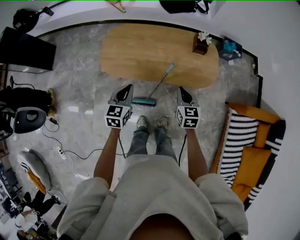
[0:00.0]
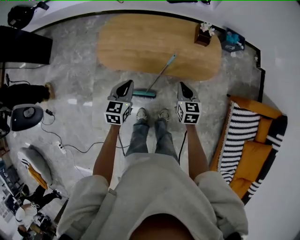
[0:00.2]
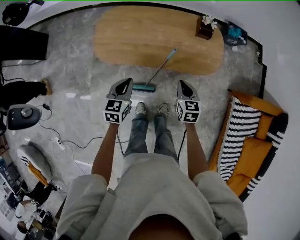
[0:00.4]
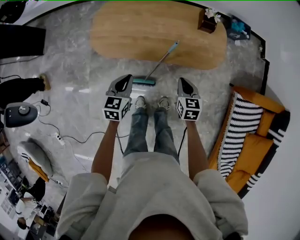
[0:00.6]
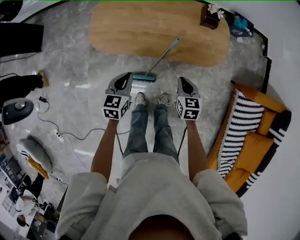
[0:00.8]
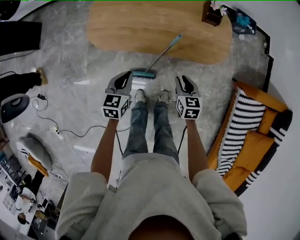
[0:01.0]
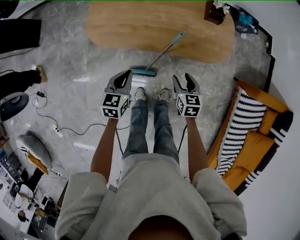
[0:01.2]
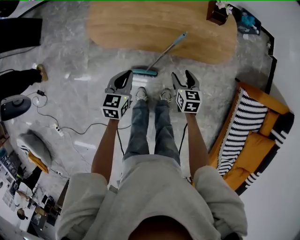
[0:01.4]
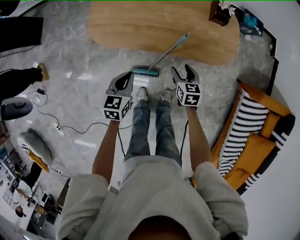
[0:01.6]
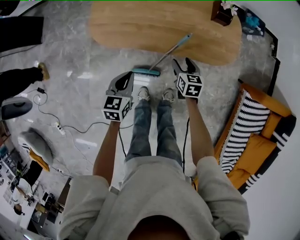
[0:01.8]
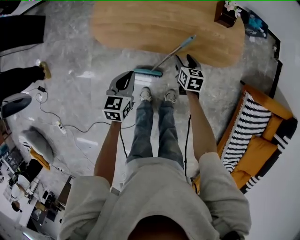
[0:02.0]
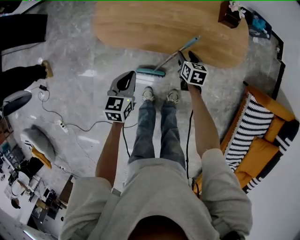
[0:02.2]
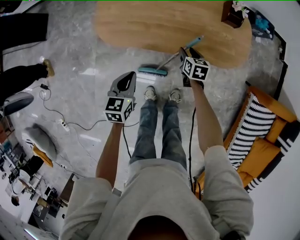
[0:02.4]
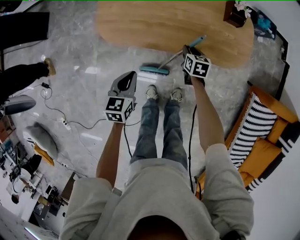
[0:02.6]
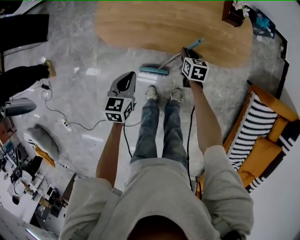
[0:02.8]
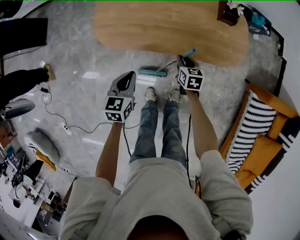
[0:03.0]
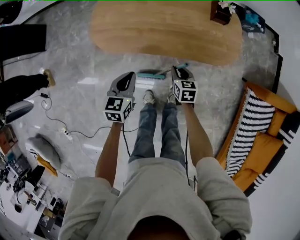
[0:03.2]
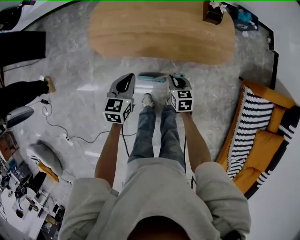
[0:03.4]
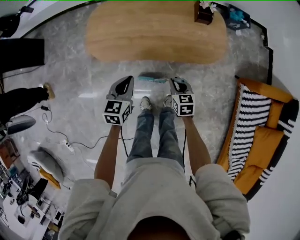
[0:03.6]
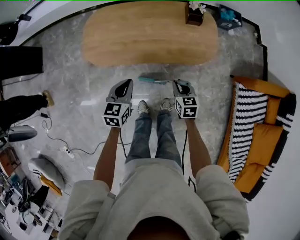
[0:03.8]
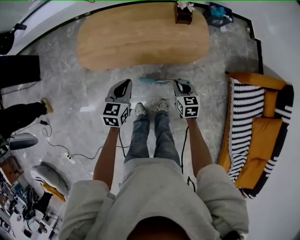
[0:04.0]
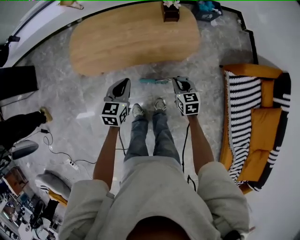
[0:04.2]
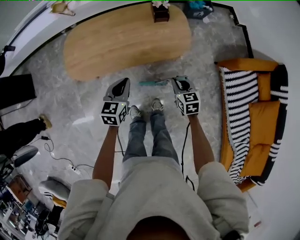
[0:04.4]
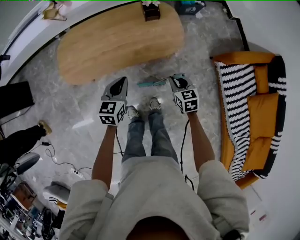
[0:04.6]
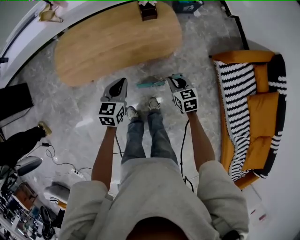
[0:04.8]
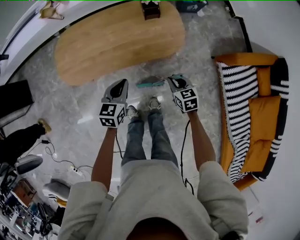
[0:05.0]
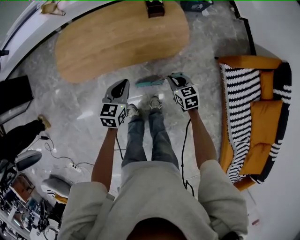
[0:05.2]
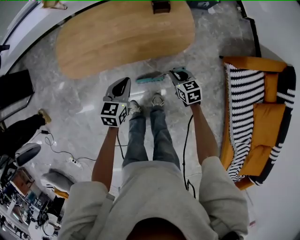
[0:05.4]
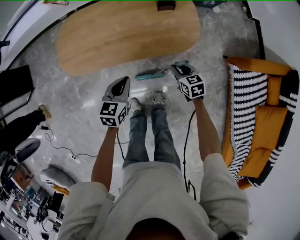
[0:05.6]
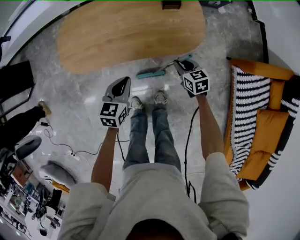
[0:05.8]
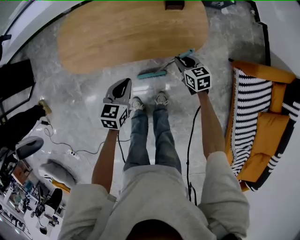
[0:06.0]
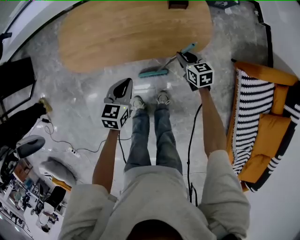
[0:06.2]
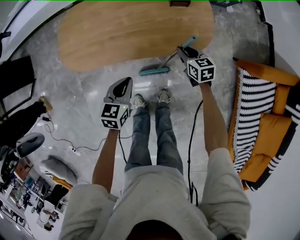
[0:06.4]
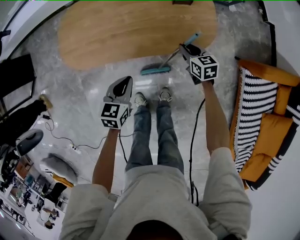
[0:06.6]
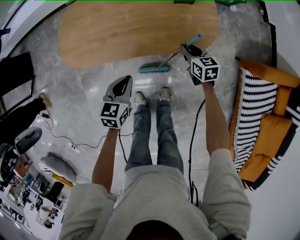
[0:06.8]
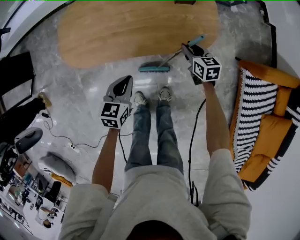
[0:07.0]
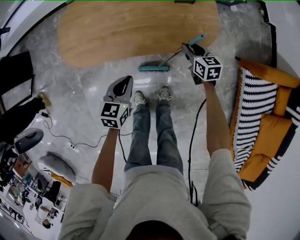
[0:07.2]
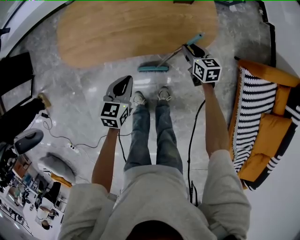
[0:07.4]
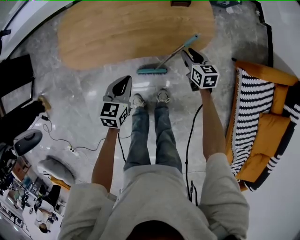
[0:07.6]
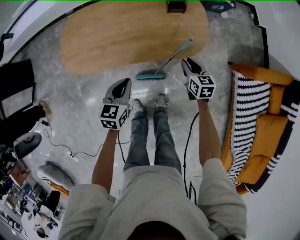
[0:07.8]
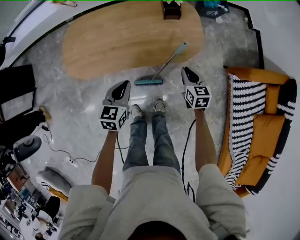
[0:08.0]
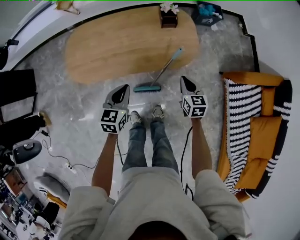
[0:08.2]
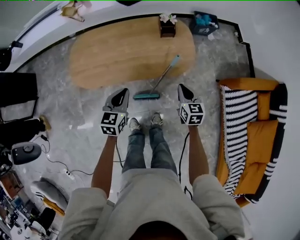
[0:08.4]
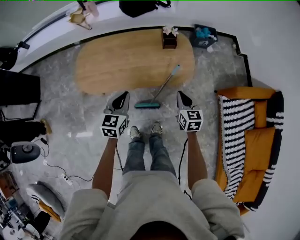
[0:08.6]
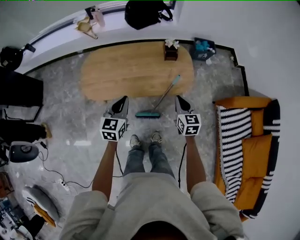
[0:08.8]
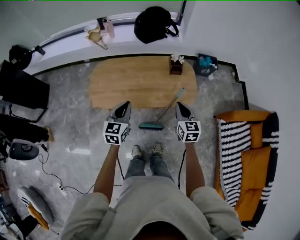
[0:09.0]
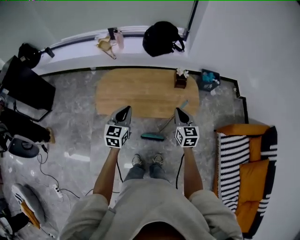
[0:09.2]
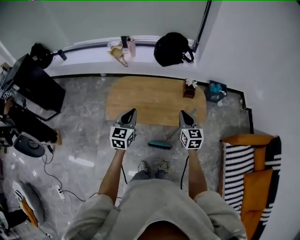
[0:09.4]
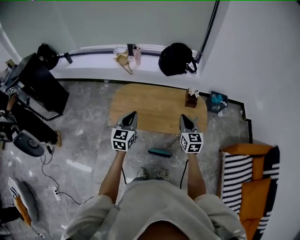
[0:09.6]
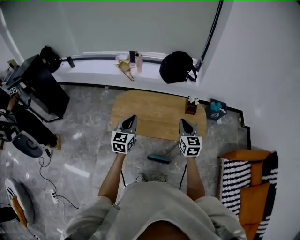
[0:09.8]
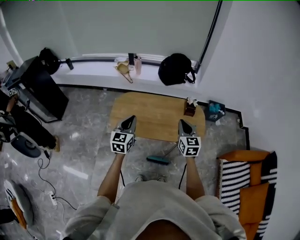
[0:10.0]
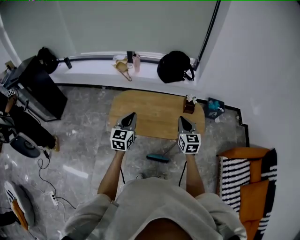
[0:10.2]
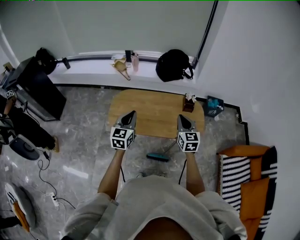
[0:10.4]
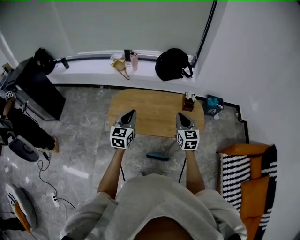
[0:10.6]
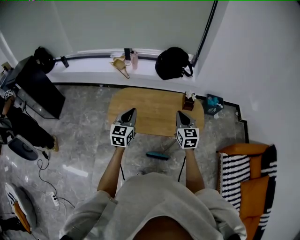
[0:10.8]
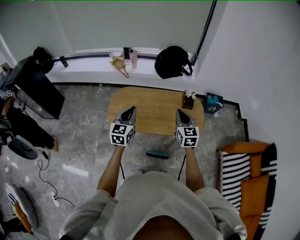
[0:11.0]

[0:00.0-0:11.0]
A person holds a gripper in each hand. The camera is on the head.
0:00.0 to 0:01.6: Both grippers travel together downward, about 15 cm. The right gripper opens.
0:01.6 to 0:03.2: The right gripper reaches some 10 cm forward, then returns, and closes up.
0:03.2 to 0:04.8: The right gripper goes about 25 cm to the right and upward; the left gripper is displaced to the right by some 20 cm, and changes its angle by approximately 20 degrees.
0:04.8 to 0:06.2: The right gripper shifts approximately 20 cm forward and downward. Meanwhile the left gripper shifts approximately 10 cm downward.
0:06.2 to 0:07.8: The right gripper shifts by approximately 5 cm.
0:07.8 to 0:09.4: Both grippers move upward and to the left, some 30 cm. The right gripper rotates some 30 degrees, and closes up. Meanwhile the left gripper changes its angle by approximately 30 degrees.
0:09.4 to 0:11.0: The right gripper moves to the left and upward, about 10 cm; the left gripper moves about 5 cm.

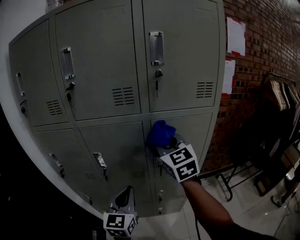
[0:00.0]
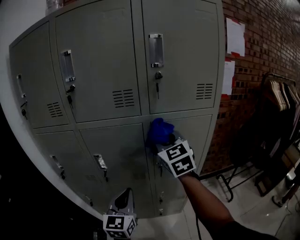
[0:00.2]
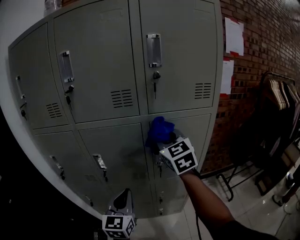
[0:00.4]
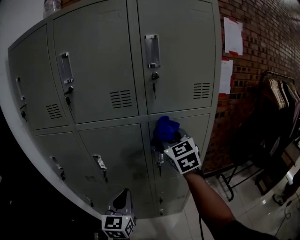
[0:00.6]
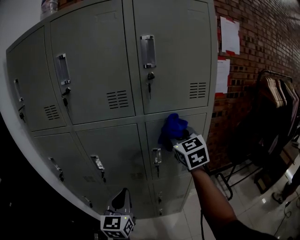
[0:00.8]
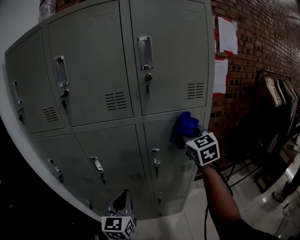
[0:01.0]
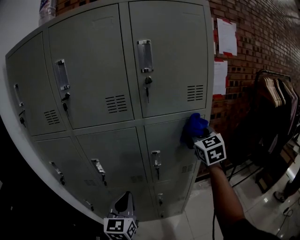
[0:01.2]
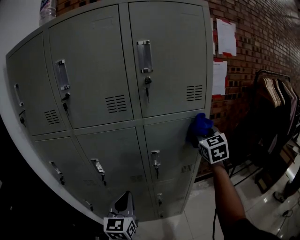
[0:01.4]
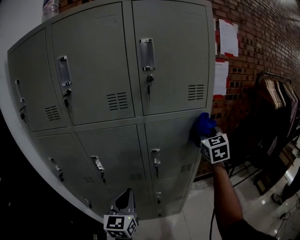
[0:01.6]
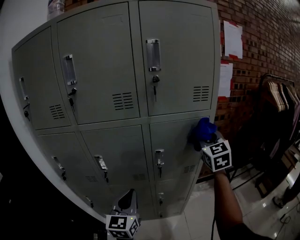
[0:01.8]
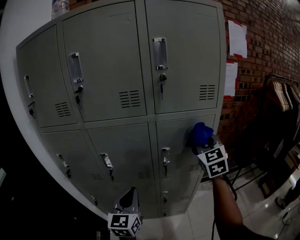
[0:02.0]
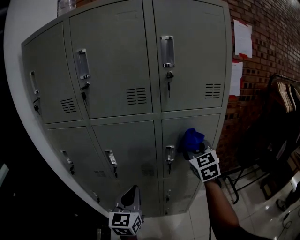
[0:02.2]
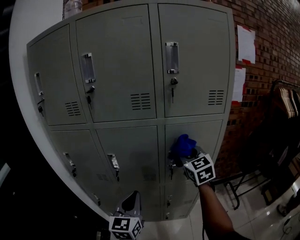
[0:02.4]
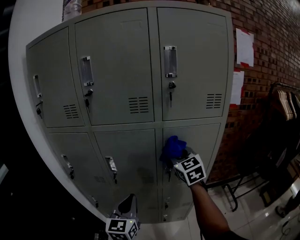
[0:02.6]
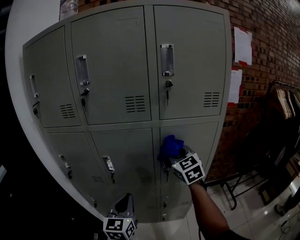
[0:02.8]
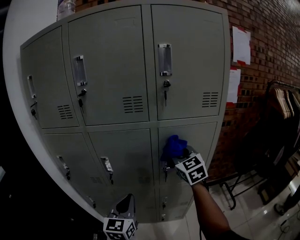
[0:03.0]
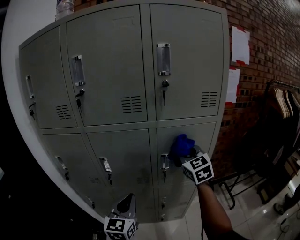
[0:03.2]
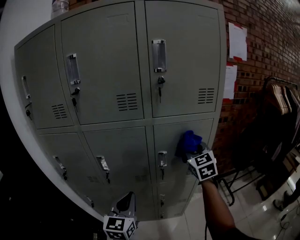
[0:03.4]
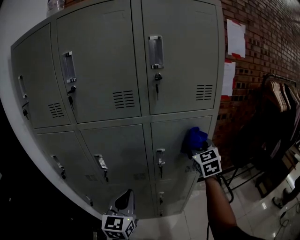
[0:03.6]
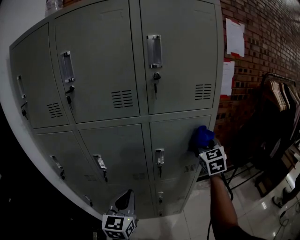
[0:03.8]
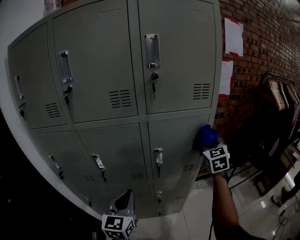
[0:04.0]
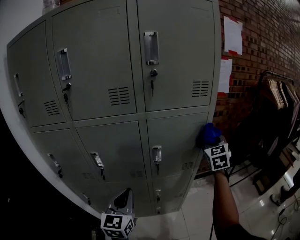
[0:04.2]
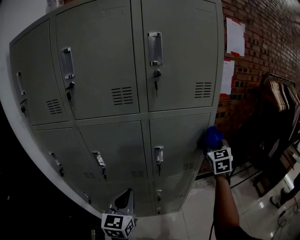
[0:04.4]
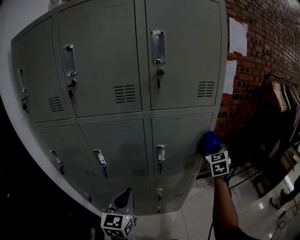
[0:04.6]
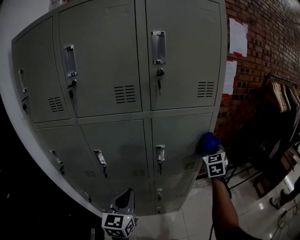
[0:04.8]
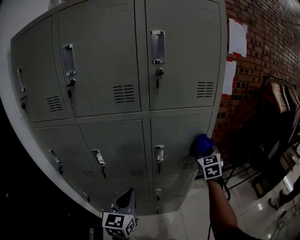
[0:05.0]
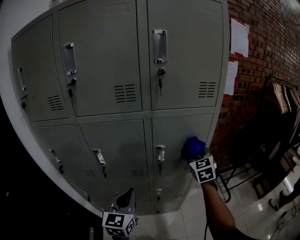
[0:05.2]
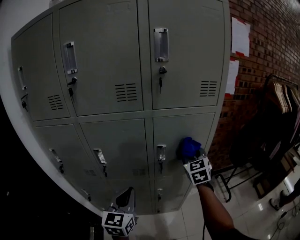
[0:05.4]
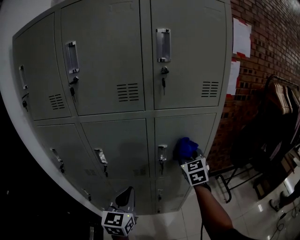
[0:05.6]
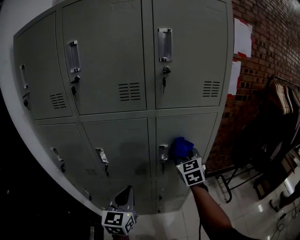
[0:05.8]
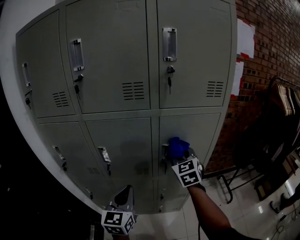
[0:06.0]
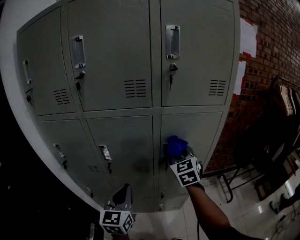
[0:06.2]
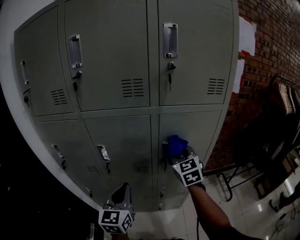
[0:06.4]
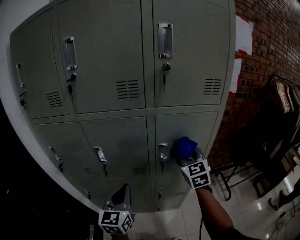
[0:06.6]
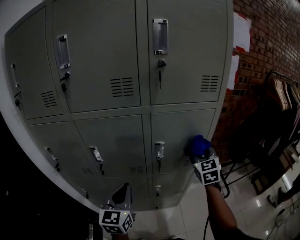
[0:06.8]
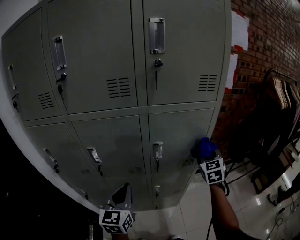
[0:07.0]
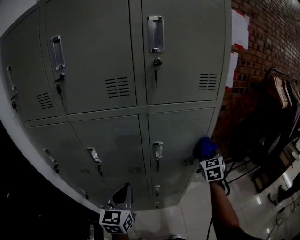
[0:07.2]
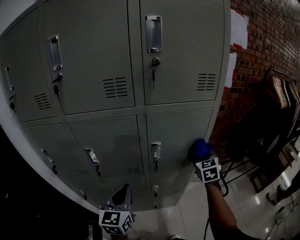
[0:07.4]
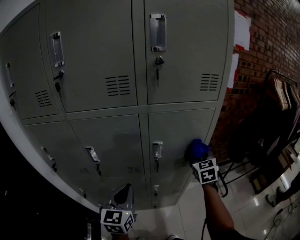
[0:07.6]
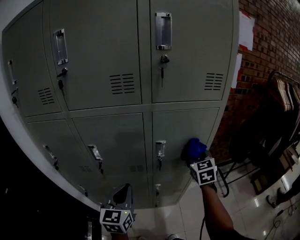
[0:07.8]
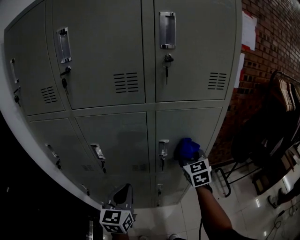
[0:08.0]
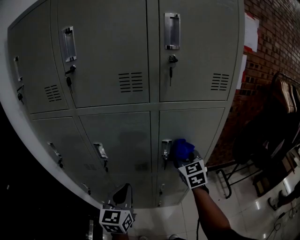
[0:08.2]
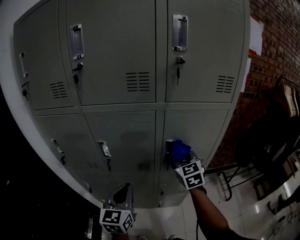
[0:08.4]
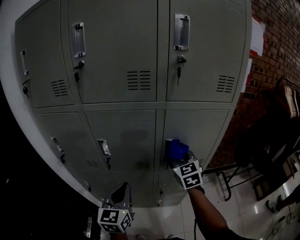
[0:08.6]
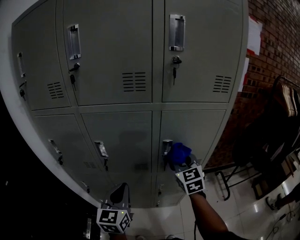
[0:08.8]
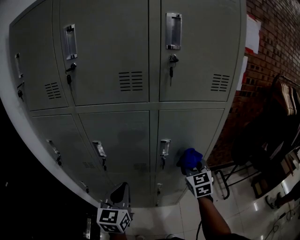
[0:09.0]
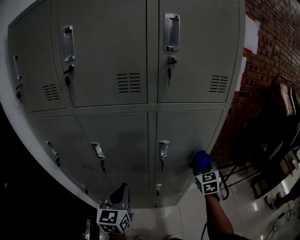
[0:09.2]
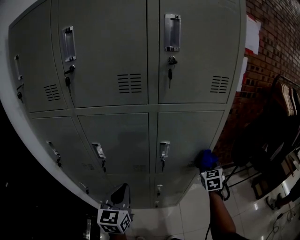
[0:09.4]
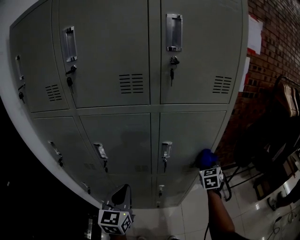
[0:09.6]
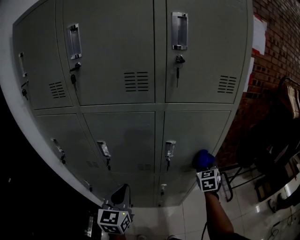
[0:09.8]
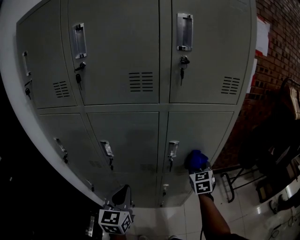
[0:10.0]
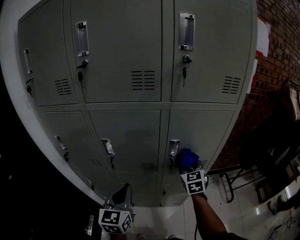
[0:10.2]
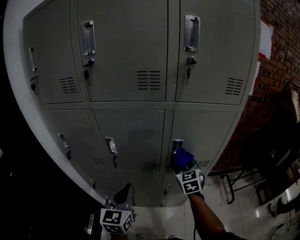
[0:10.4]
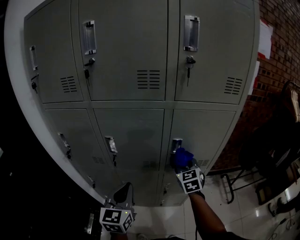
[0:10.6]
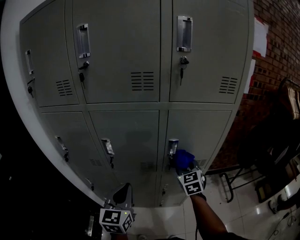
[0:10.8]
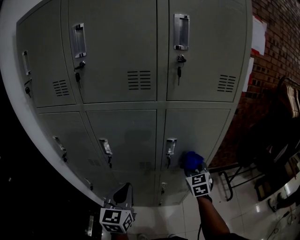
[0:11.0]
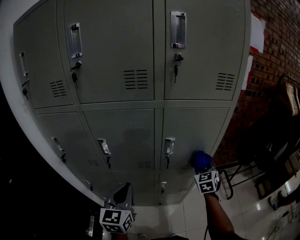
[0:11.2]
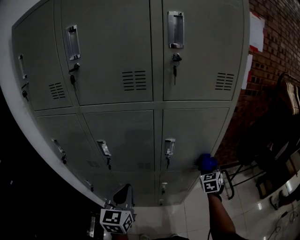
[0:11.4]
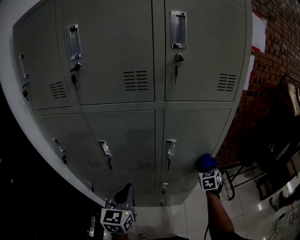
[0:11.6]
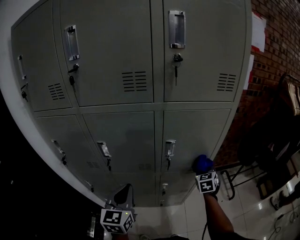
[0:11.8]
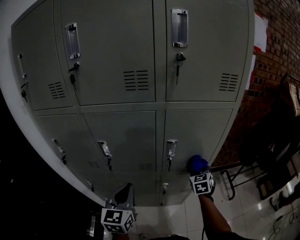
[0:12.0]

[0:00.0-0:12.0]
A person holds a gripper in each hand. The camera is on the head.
0:00.0 to 0:01.6: The right gripper heads to the right, covering some 20 cm, and changes its angle by approximately 20 degrees.
0:01.6 to 0:03.0: The right gripper travels to the left by roughly 20 cm, and swivels about 20 degrees.
0:03.0 to 0:04.4: The right gripper heads to the right, covering some 20 cm, and turns by approximately 30 degrees.
0:04.4 to 0:06.0: The right gripper is displaced to the left by roughly 20 cm.
0:06.0 to 0:07.6: The right gripper shifts approximately 15 cm to the right and downward.
0:07.6 to 0:09.0: The right gripper shifts roughly 10 cm to the left.
0:09.0 to 0:10.4: The right gripper goes roughly 10 cm to the left.
0:10.4 to 0:12.0: The right gripper shifts some 15 cm to the right and downward.

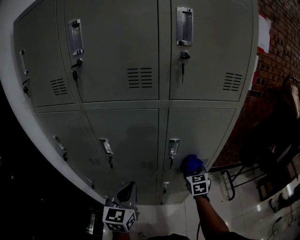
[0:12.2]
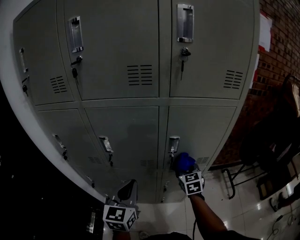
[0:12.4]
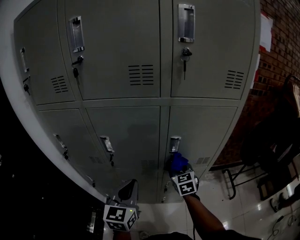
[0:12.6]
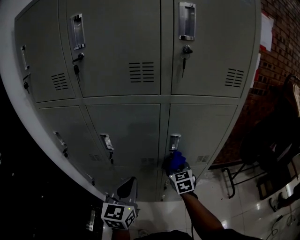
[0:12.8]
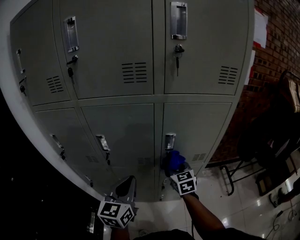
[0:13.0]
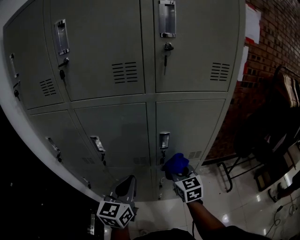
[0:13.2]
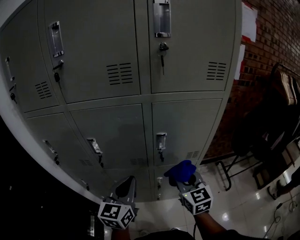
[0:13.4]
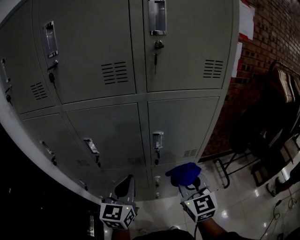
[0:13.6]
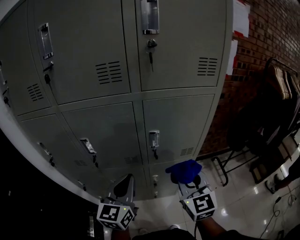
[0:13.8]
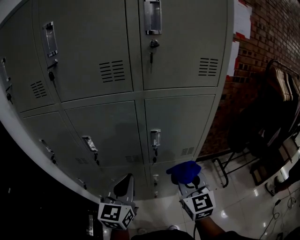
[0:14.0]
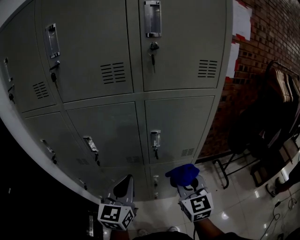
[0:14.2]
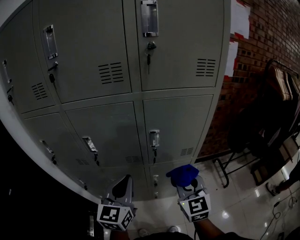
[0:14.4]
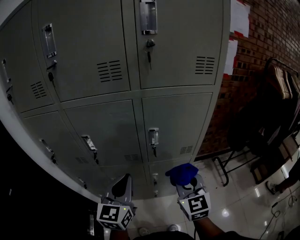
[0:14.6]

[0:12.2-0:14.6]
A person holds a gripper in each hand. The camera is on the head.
0:12.2 to 0:13.4: The right gripper shifts roughly 15 cm backward and upward.
0:13.4 to 0:14.6: The right gripper ends up some 5 cm from where it was.
